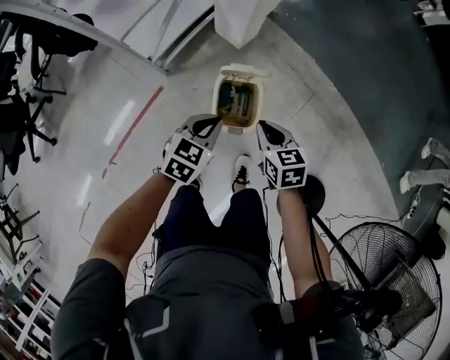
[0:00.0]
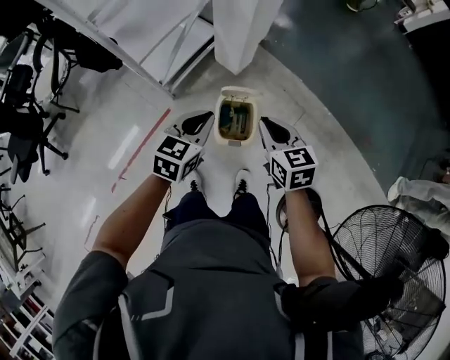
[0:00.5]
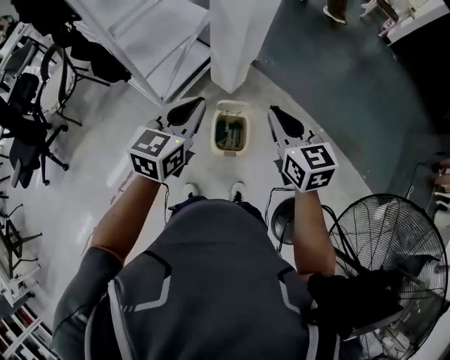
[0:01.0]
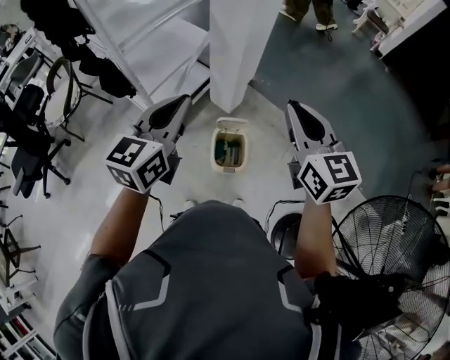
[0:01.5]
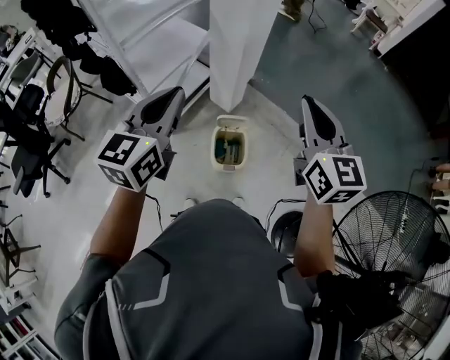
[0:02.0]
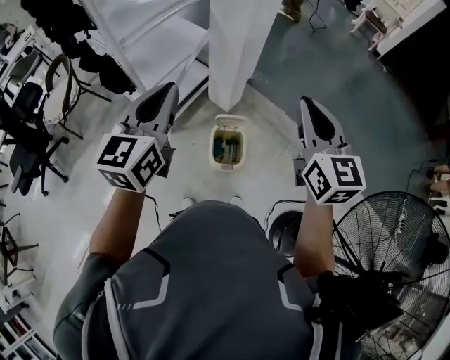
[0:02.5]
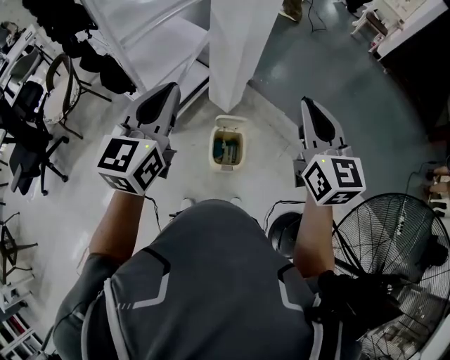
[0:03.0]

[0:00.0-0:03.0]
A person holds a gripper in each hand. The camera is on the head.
0:00.0 to 0:01.5: The grippers both shift upward by some 50 cm. The left gripper angles its fingers upward, by roughly 30 degrees; the right gripper points its fingers about 30 degrees further upward.
0:01.5 to 0:03.0: There are only small adjustments of the grippers.

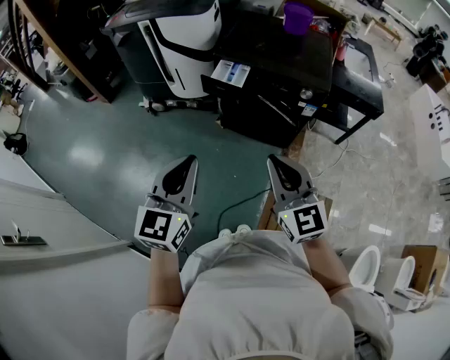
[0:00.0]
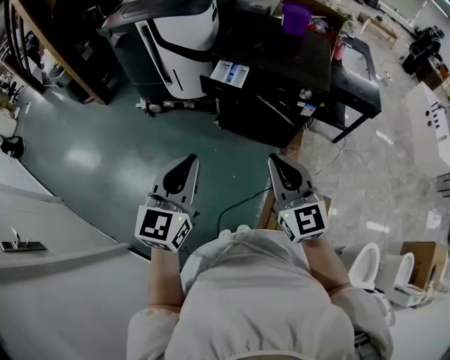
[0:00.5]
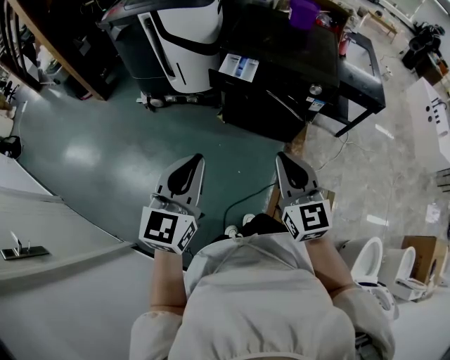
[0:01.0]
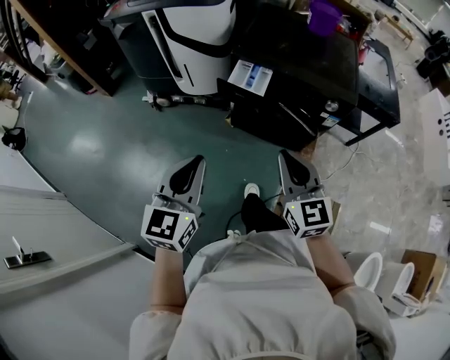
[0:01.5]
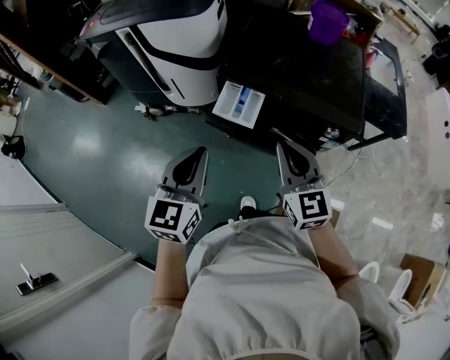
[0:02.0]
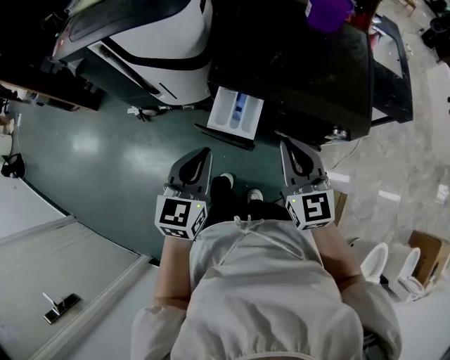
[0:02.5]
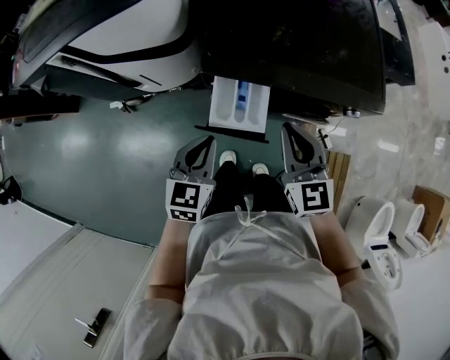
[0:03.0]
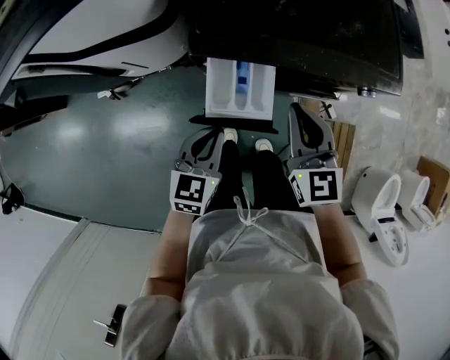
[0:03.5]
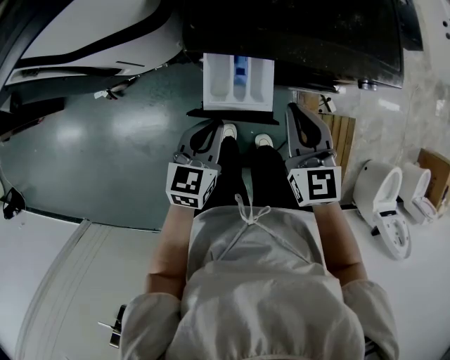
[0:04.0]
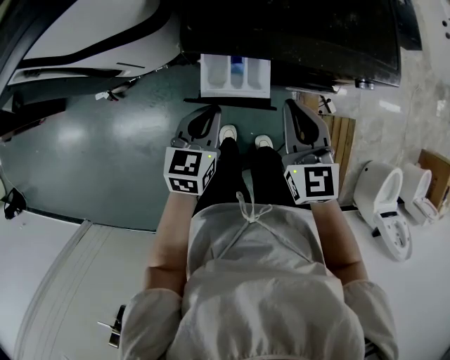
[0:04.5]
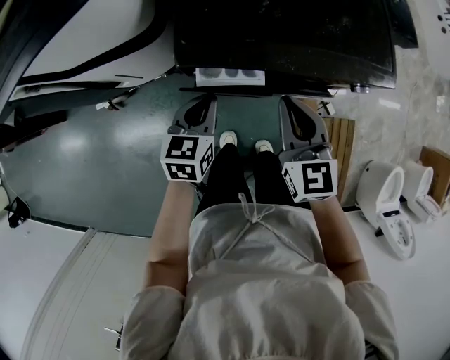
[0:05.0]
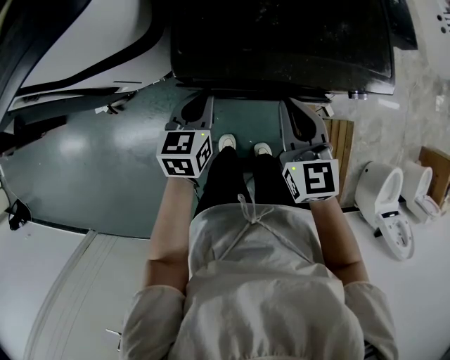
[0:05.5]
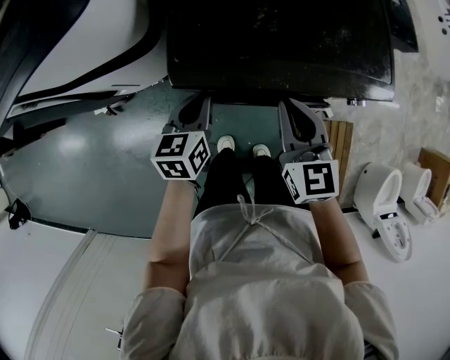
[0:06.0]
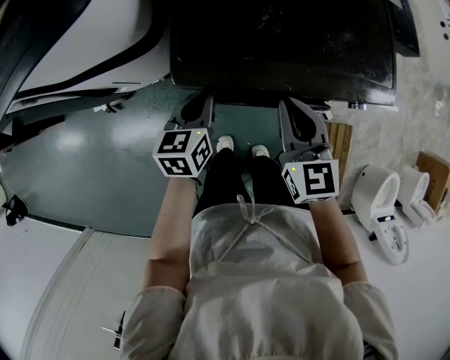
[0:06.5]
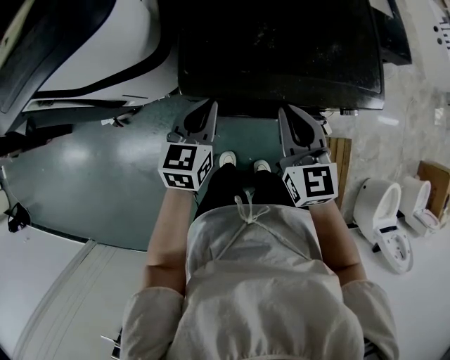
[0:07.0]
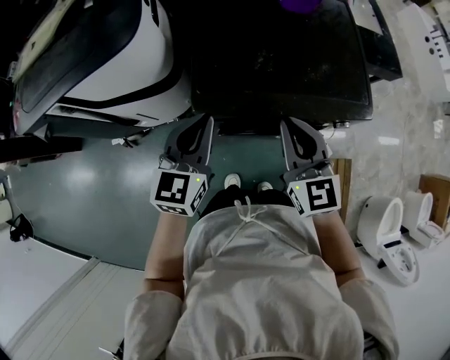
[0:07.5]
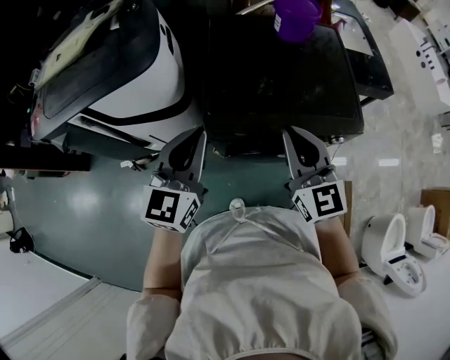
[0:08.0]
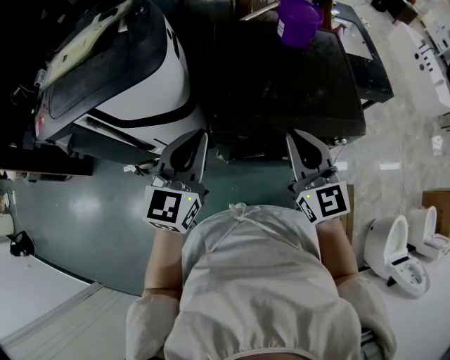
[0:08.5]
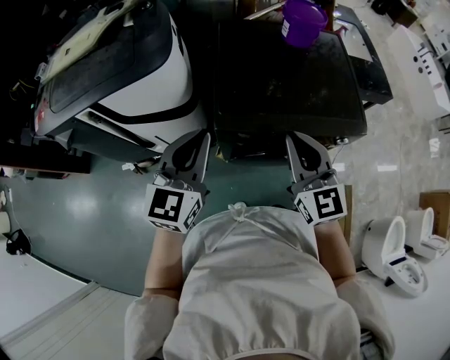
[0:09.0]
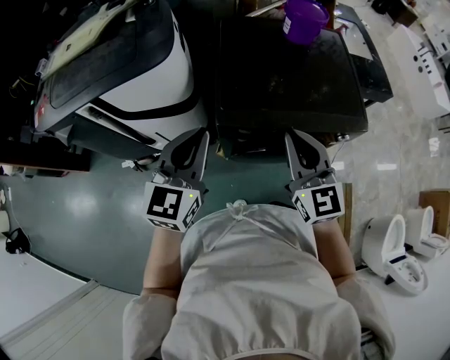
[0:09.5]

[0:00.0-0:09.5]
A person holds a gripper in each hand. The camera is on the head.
0:00.0 to 0:02.0: Both grippers travel together forward, some 30 cm.
0:02.0 to 0:04.0: The two grippers go approximately 25 cm downward and forward. The right gripper changes its angle by about 20 degrees, while the left gripper rotates some 30 degrees.
0:04.0 to 0:05.5: The left gripper goes about 10 cm forward. The right gripper travels forward by some 5 cm.
0:05.5 to 0:07.5: The left gripper is displaced upward by about 20 cm, and swivels about 20 degrees; the right gripper travels upward by about 10 cm.
0:07.5 to 0:09.5: The right gripper shifts about 5 cm upward; the left gripper travels upward and to the left by about 10 cm.

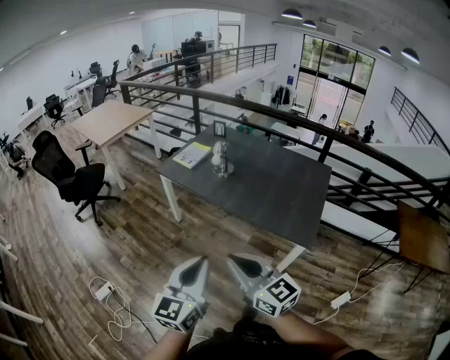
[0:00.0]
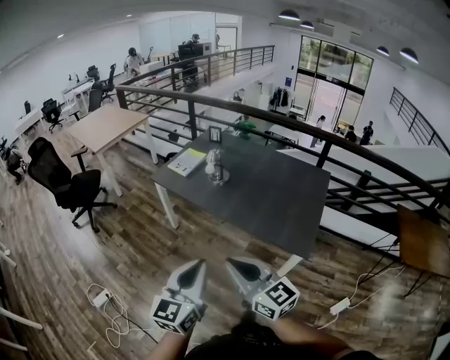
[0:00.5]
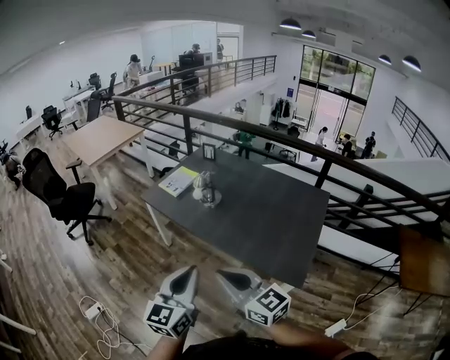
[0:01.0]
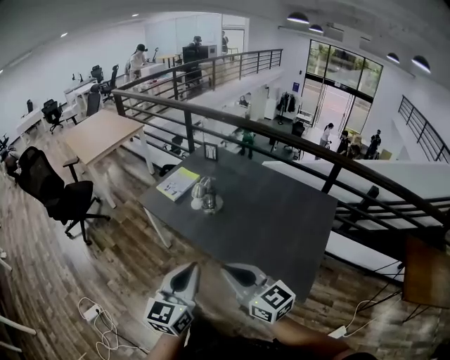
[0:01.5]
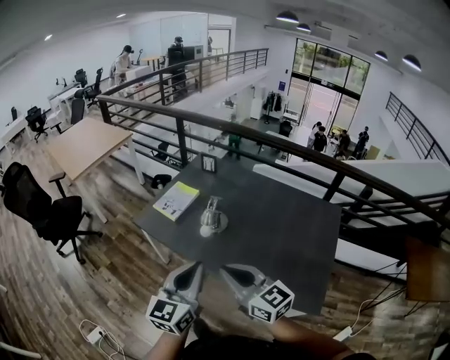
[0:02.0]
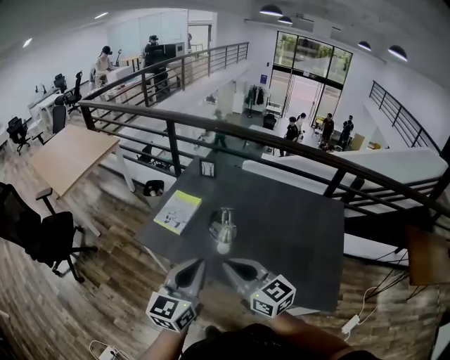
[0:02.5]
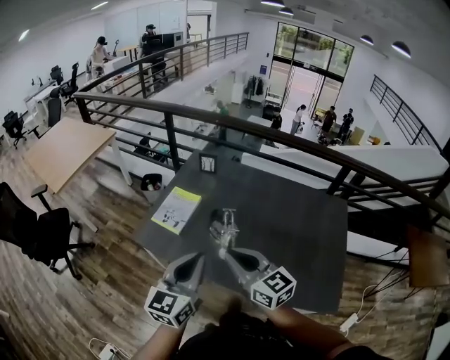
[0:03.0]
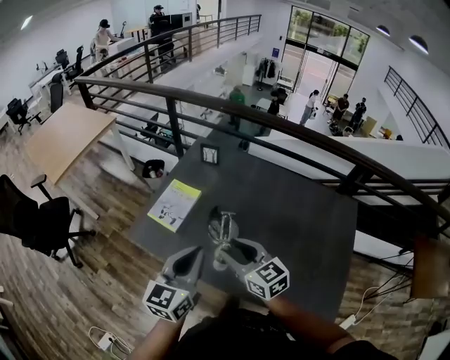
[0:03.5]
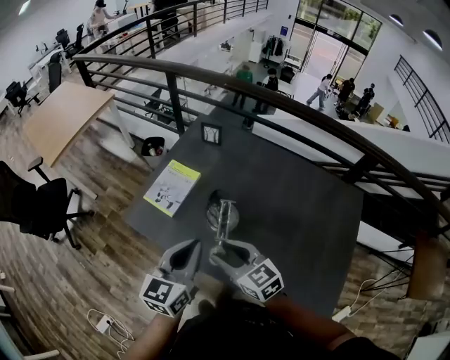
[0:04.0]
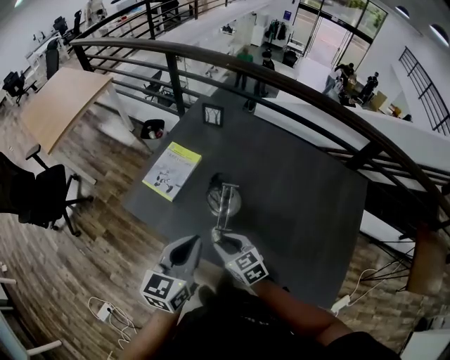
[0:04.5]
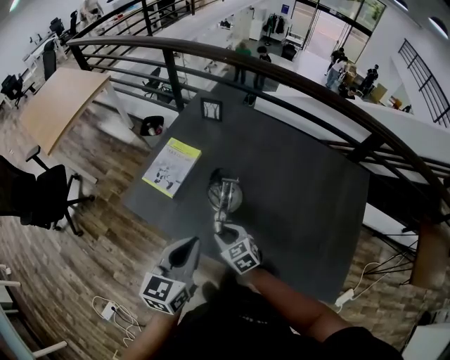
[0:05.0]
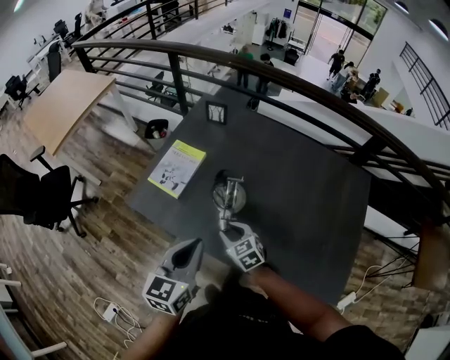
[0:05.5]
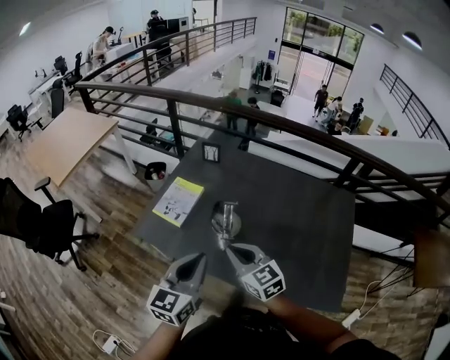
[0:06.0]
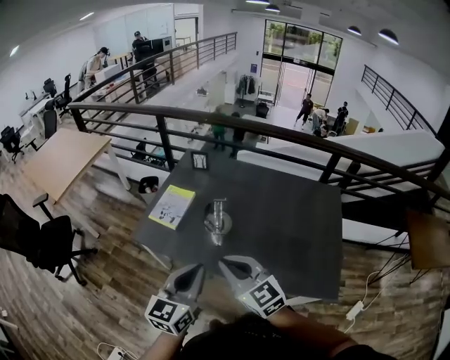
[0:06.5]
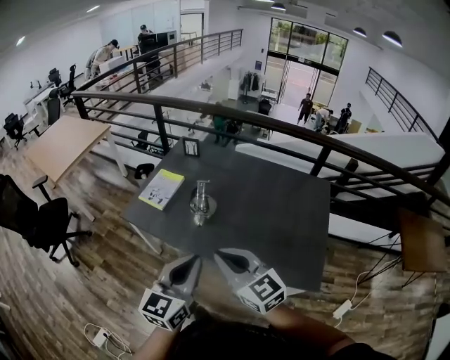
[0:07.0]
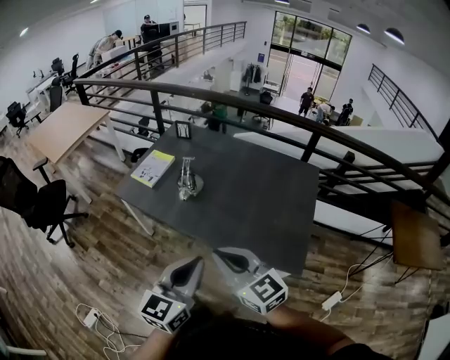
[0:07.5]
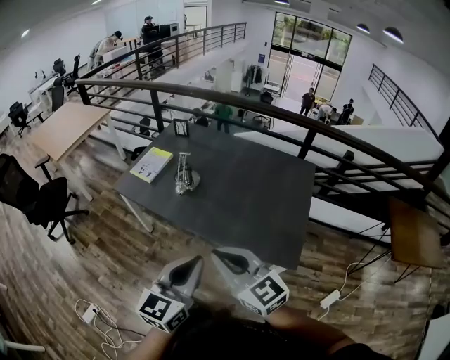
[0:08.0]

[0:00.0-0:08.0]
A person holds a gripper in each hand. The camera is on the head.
0:00.0 to 0:02.0: Both grippers move forward, roughly 40 cm.
0:02.0 to 0:04.0: The left gripper shifts roughly 25 cm forward. The right gripper travels forward and downward by approximately 25 cm, swivels some 20 degrees, and opens its fingers.
0:04.0 to 0:06.0: The left gripper travels backward by approximately 5 cm; the right gripper reaches some 20 cm downward, then returns, and closes.
0:06.0 to 0:08.0: The right gripper shifts about 35 cm backward. The left gripper moves backward and to the right, about 40 cm.

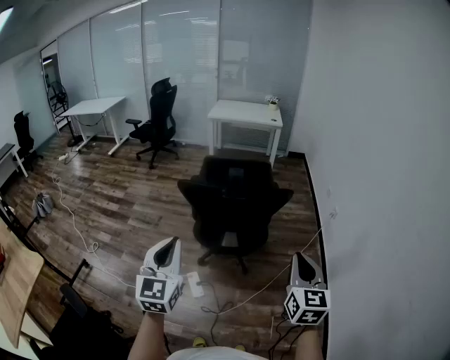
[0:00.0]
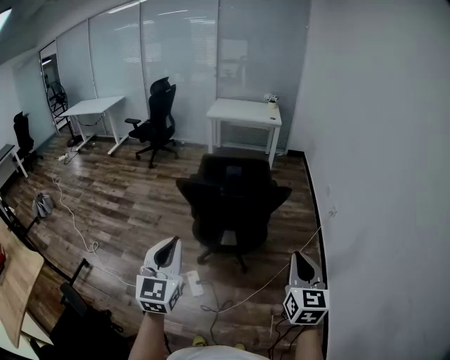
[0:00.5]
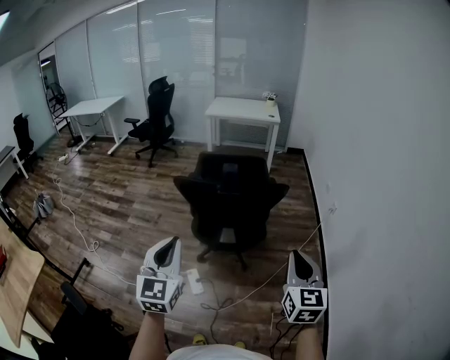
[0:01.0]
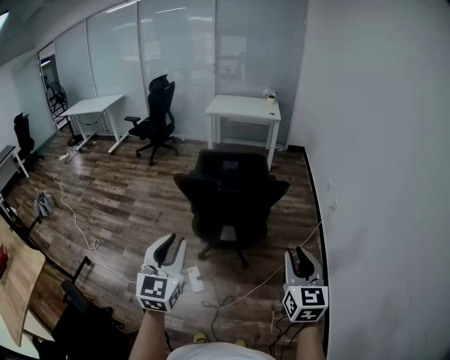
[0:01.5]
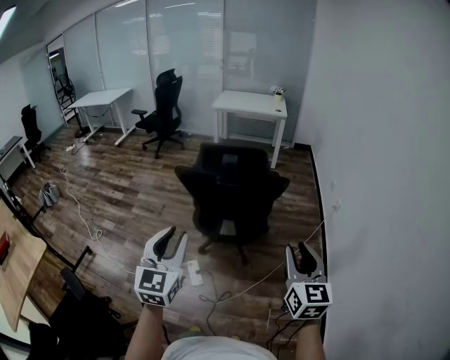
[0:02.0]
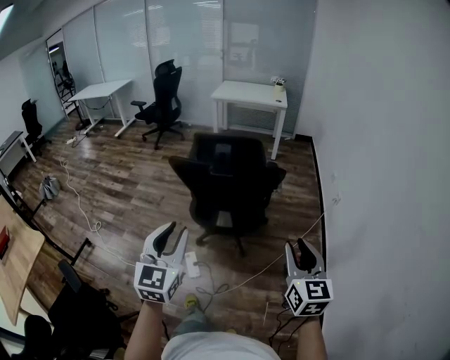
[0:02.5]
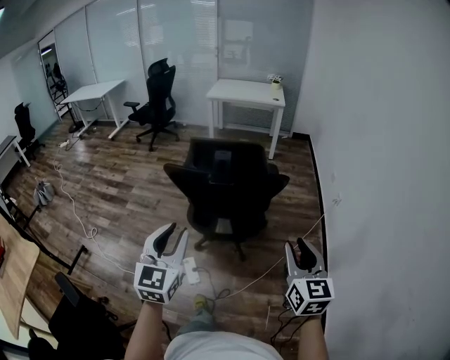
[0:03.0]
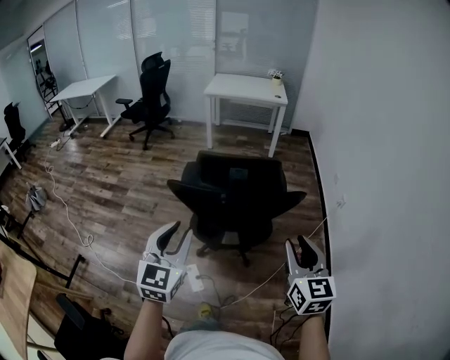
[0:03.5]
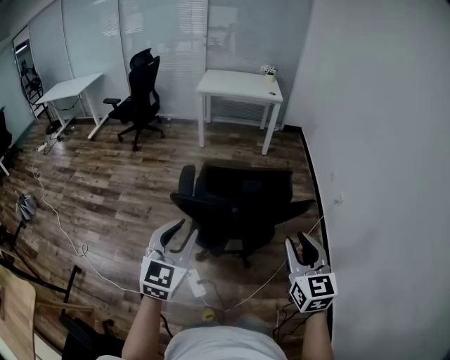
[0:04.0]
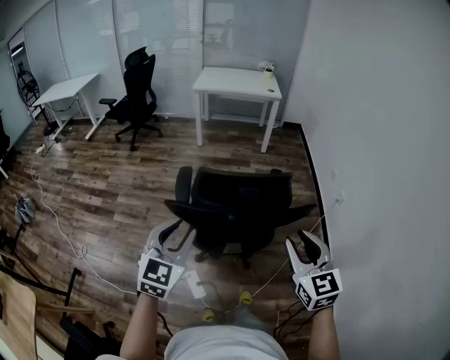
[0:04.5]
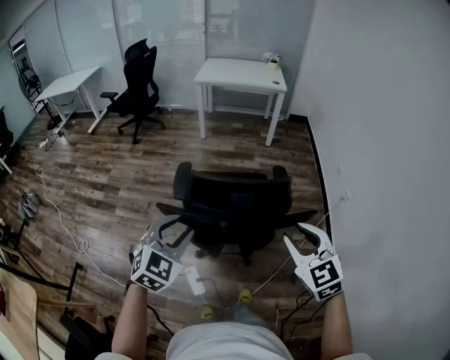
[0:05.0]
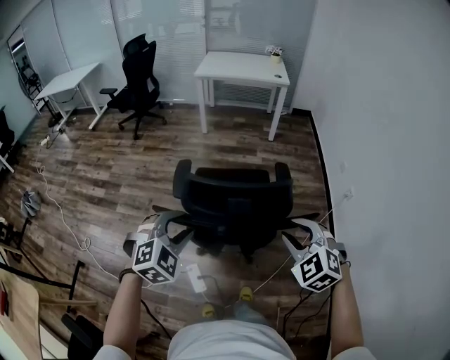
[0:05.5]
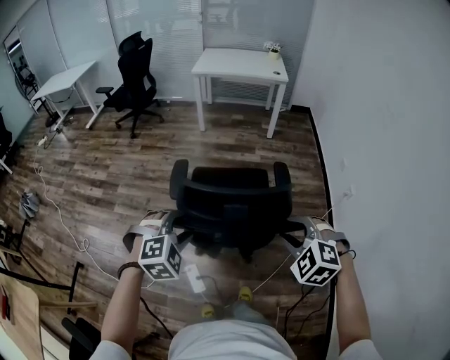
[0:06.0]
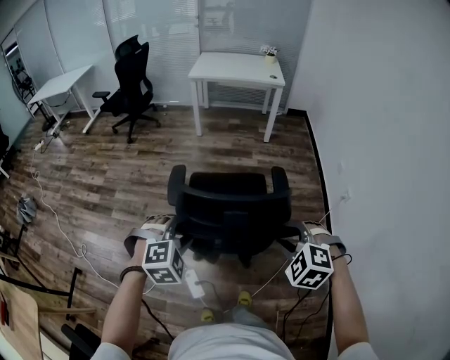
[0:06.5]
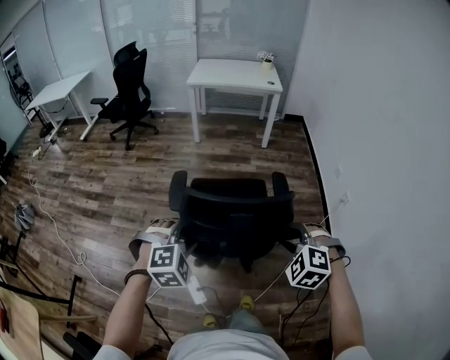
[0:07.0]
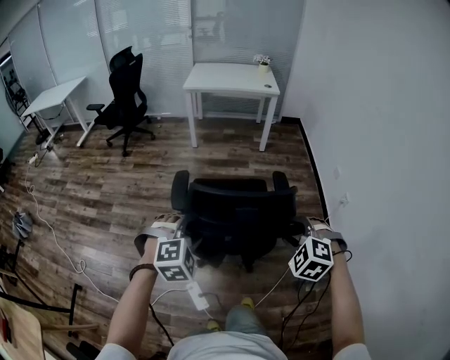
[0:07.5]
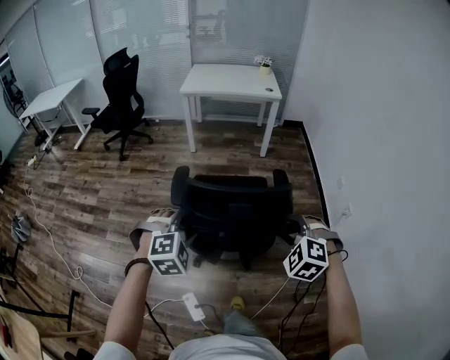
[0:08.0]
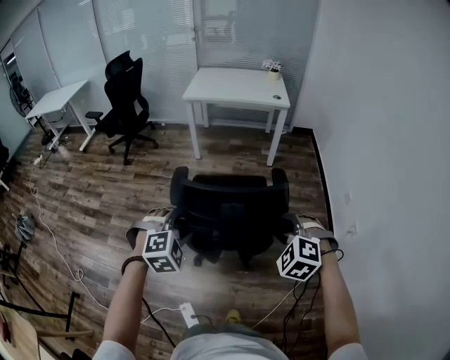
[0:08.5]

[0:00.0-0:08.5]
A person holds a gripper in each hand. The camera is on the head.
0:00.0 to 0:02.0: The left gripper heads to the right, covering some 5 cm, and opens, while the right gripper opens.
0:02.0 to 0:04.0: The left gripper heads forward, covering roughly 30 cm. The right gripper travels forward and to the left by about 30 cm.
0:04.0 to 0:06.5: Both grippers move forward and downward, approximately 20 cm. The left gripper angles its fingers downward, by roughly 40 degrees. The right gripper angles its fingers downward, by some 40 degrees.
0:06.5 to 0:08.5: The two grippers go about 30 cm forward.
